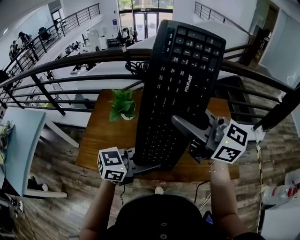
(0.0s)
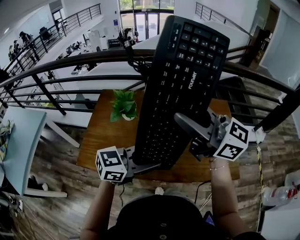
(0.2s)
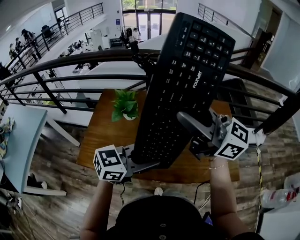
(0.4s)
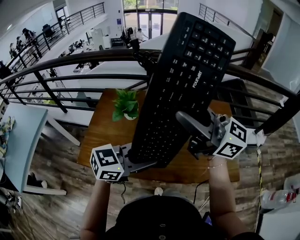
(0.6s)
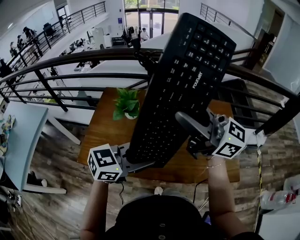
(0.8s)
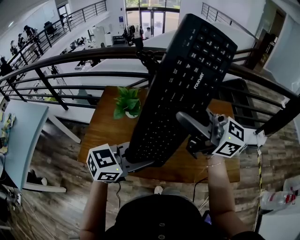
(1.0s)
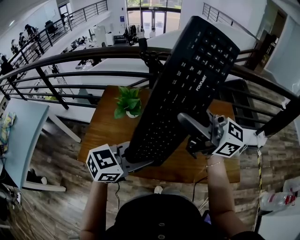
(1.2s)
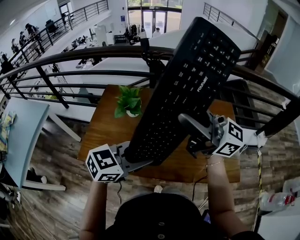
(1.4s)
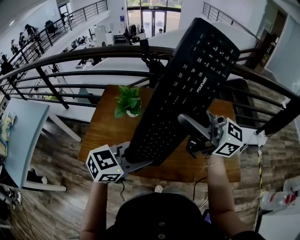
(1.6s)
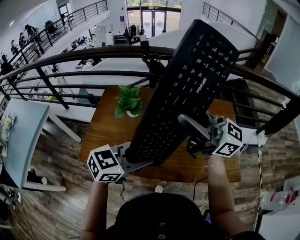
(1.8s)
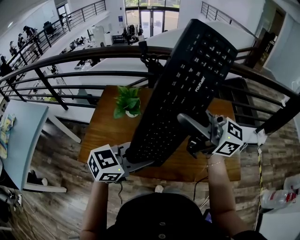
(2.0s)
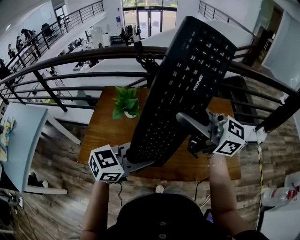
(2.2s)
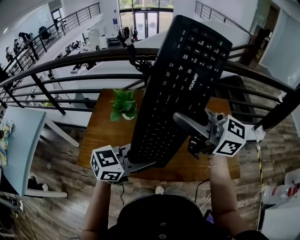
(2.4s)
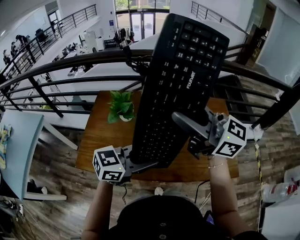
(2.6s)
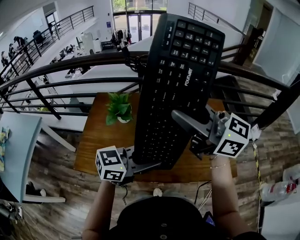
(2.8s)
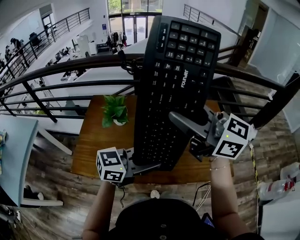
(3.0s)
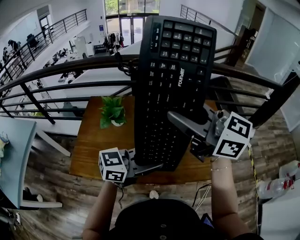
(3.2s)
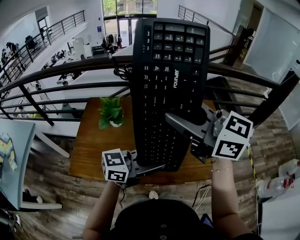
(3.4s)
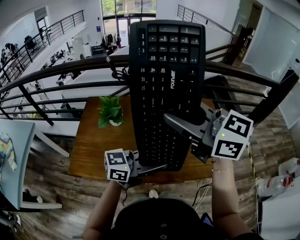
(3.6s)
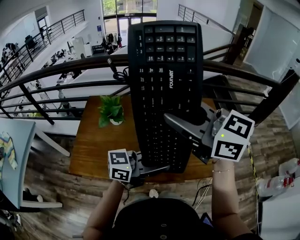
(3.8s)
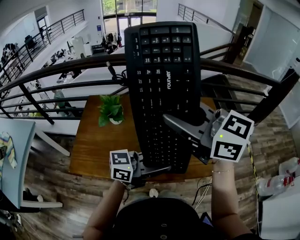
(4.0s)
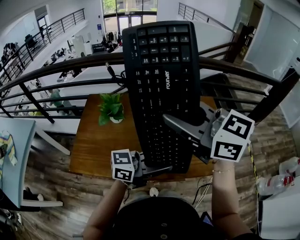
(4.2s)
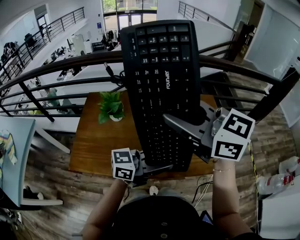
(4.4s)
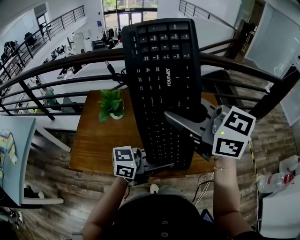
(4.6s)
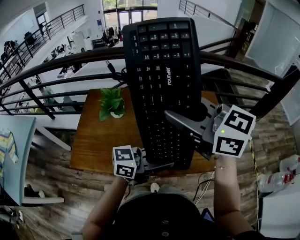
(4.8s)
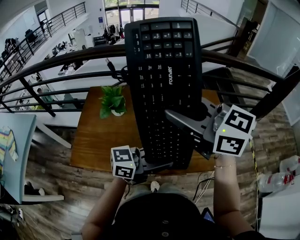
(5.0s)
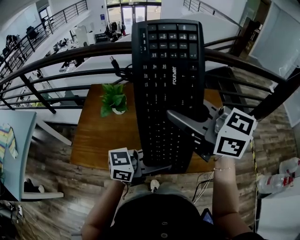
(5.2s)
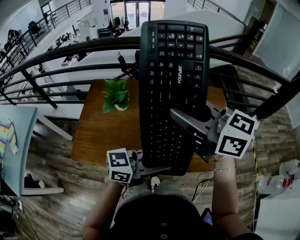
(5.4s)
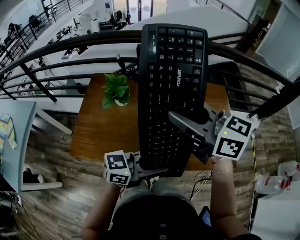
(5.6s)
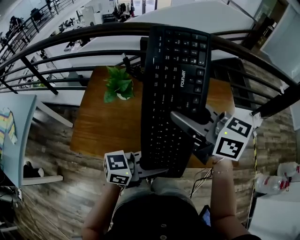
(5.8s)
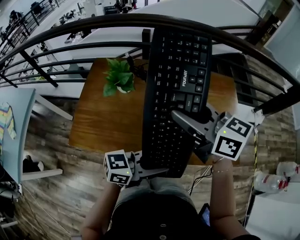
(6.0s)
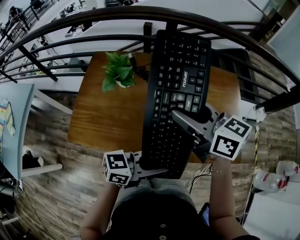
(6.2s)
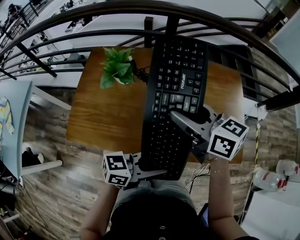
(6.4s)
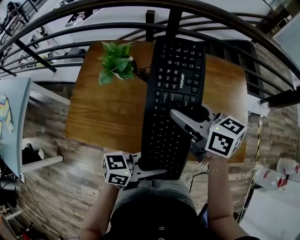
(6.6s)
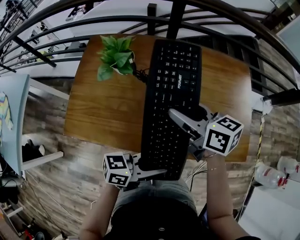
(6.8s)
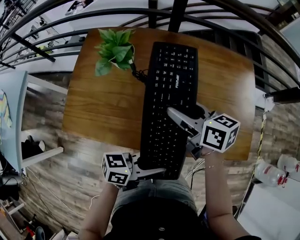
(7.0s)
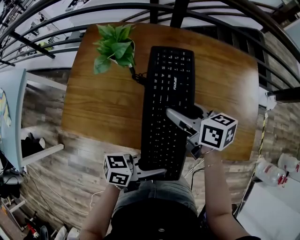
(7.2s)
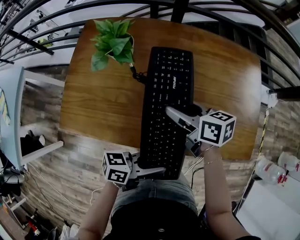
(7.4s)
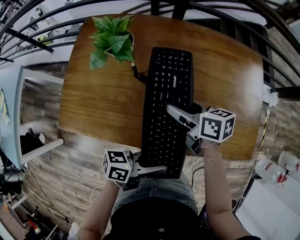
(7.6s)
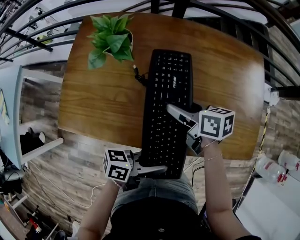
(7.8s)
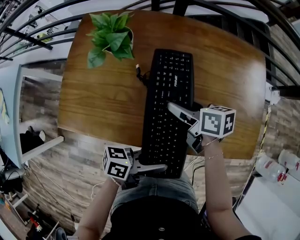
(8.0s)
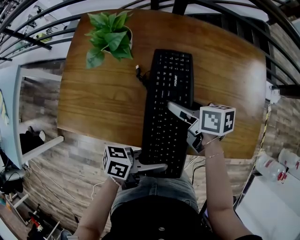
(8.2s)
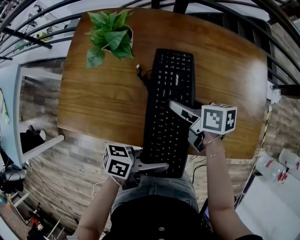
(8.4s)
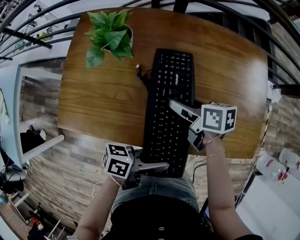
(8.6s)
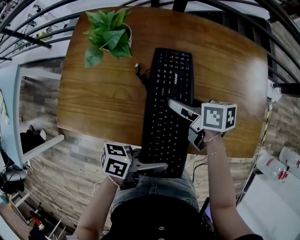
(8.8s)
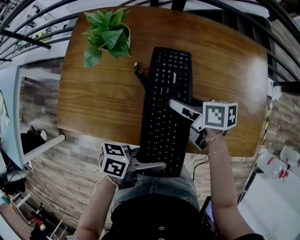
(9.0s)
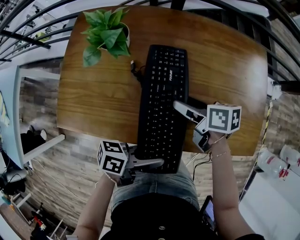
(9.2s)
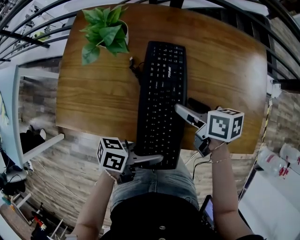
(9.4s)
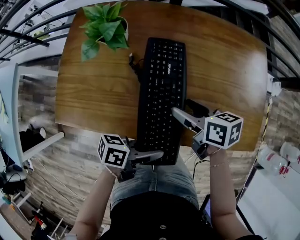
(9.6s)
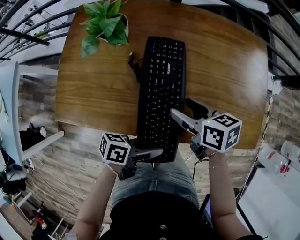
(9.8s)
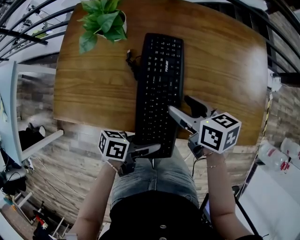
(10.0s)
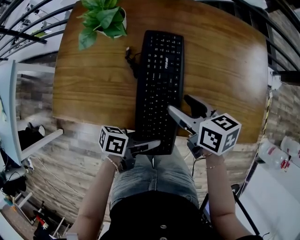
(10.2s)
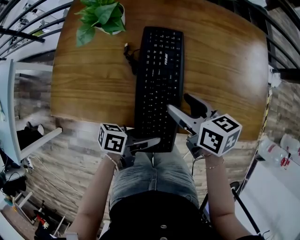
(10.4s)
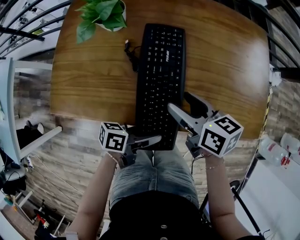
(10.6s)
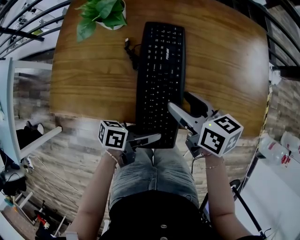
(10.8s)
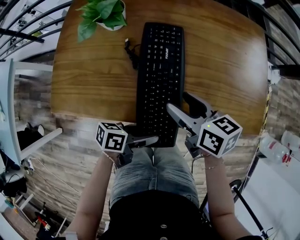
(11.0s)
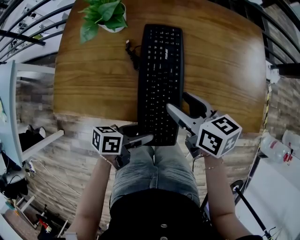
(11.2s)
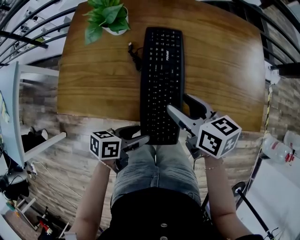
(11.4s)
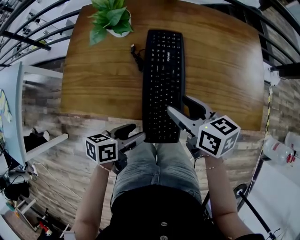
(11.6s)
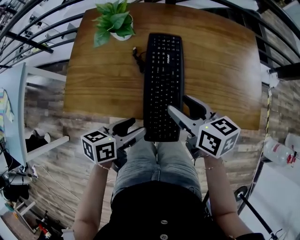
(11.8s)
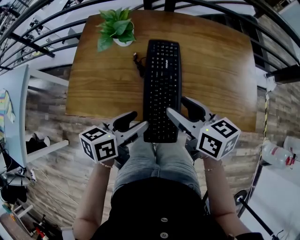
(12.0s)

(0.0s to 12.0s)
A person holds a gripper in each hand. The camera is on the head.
0.0s - 1.6s: The grippers make only small movements.
1.6s - 3.0s: The right gripper changes its angle by approximately 20 degrees. Meanwhile the left gripper changes place by about 5 cm, and changes its angle by some 20 degrees.
3.0s - 4.4s: The left gripper ends up about 5 cm from where it was.
4.4s - 6.0s: The left gripper goes about 5 cm downward, while the right gripper goes approximately 10 cm downward, and swivels roughly 20 degrees.
6.0s - 7.6s: The right gripper shifts about 25 cm downward, and turns by approximately 40 degrees. Meanwhile the left gripper goes approximately 15 cm downward, and swivels about 30 degrees.
7.6s - 9.0s: There are only small adjustments of the grippers.
9.0s - 10.4s: The left gripper is displaced downward by some 10 cm. The right gripper changes place by some 10 cm.
10.4s - 12.0s: Both grippers move upward, roughly 10 cm. The left gripper changes its angle by about 40 degrees, and opens.

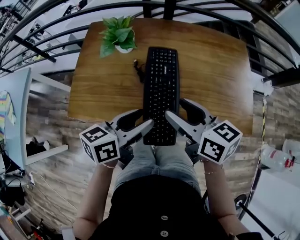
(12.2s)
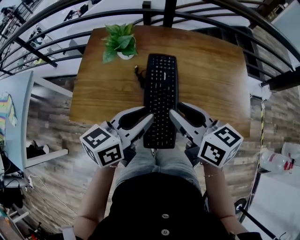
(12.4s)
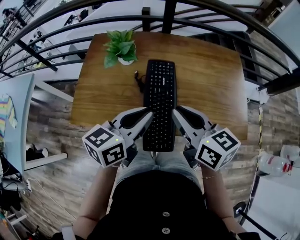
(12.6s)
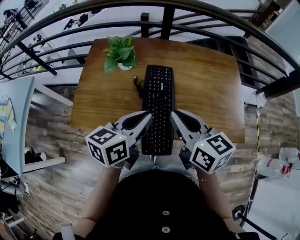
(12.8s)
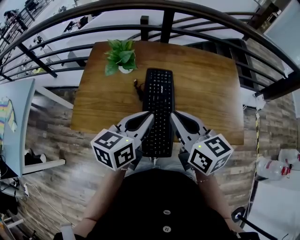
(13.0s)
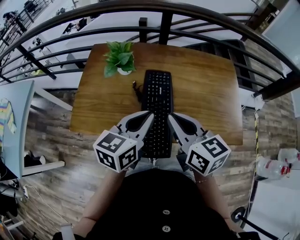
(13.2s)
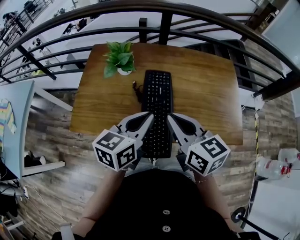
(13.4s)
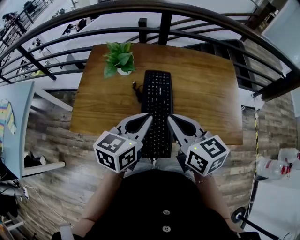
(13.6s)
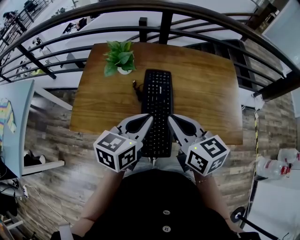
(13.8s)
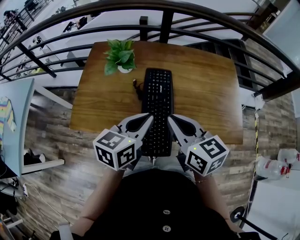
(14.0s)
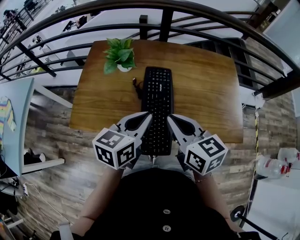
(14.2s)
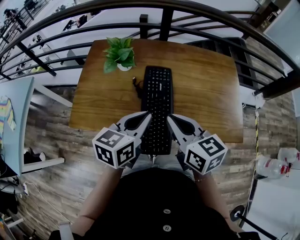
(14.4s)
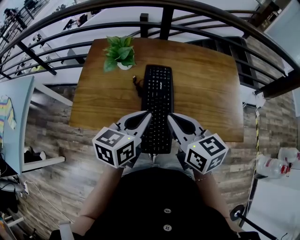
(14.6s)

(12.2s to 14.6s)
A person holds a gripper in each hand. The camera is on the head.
12.2s - 13.4s: The left gripper shifts roughly 5 cm upward, and closes; the right gripper closes up.
13.4s - 14.6s: The grippers move only a little.

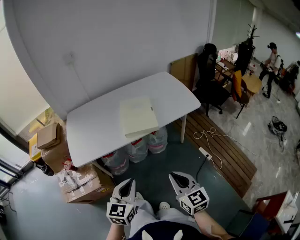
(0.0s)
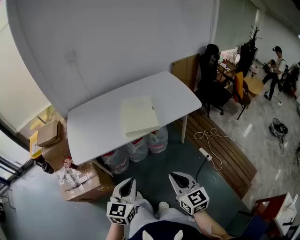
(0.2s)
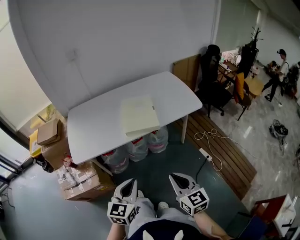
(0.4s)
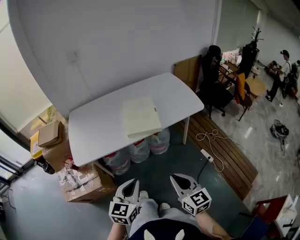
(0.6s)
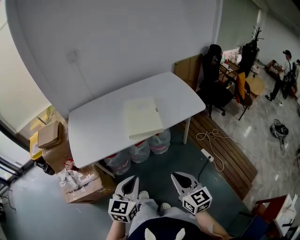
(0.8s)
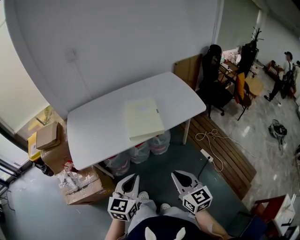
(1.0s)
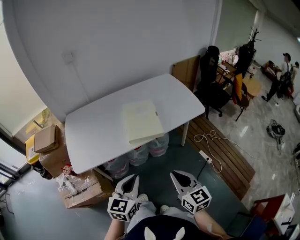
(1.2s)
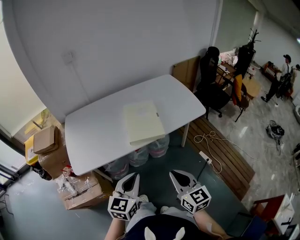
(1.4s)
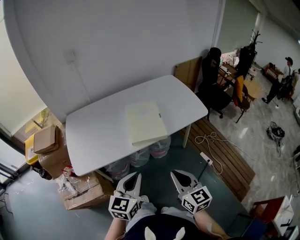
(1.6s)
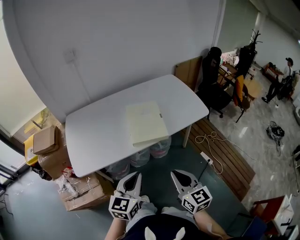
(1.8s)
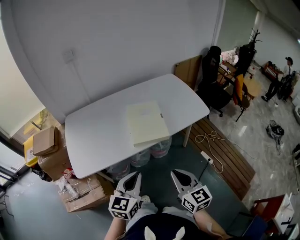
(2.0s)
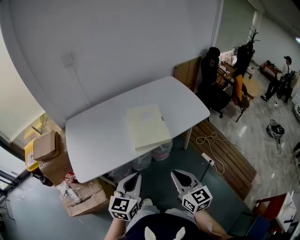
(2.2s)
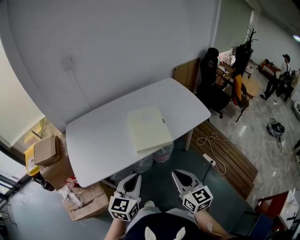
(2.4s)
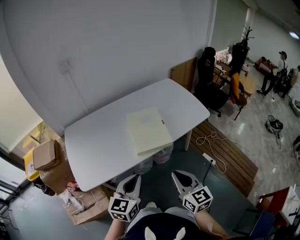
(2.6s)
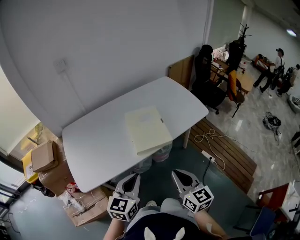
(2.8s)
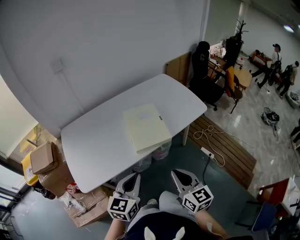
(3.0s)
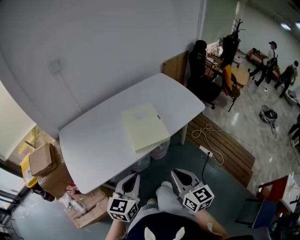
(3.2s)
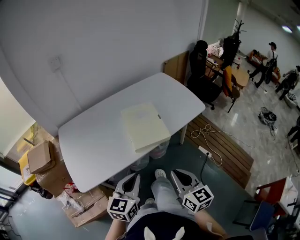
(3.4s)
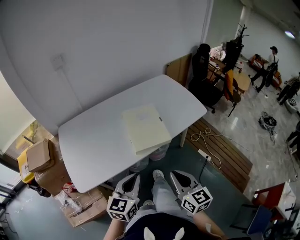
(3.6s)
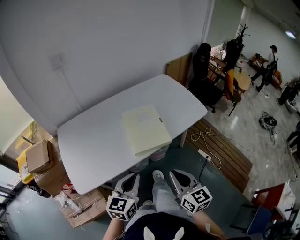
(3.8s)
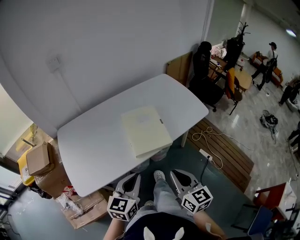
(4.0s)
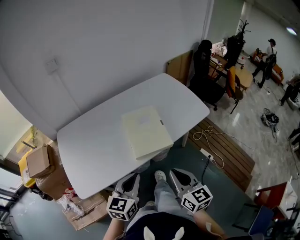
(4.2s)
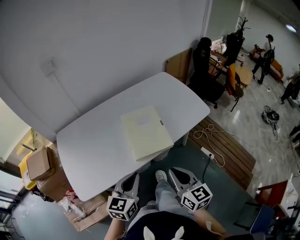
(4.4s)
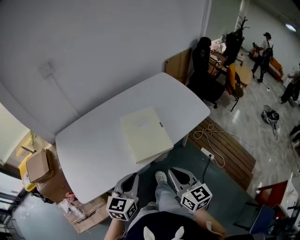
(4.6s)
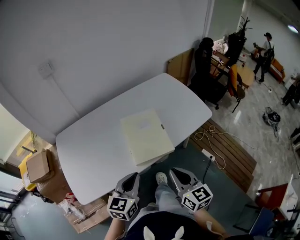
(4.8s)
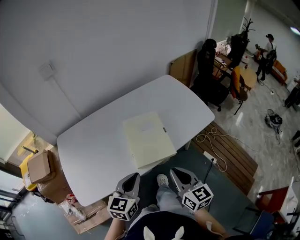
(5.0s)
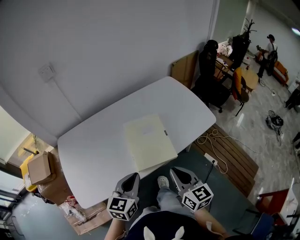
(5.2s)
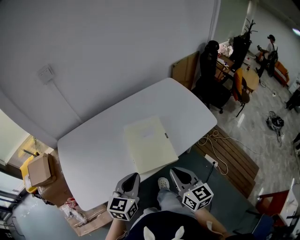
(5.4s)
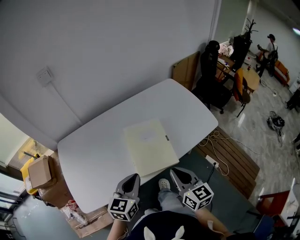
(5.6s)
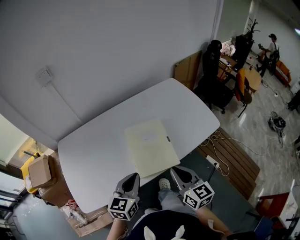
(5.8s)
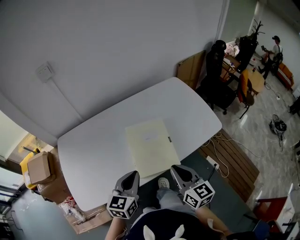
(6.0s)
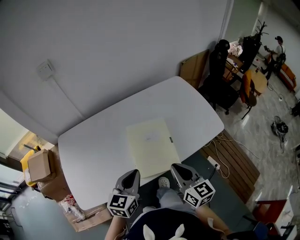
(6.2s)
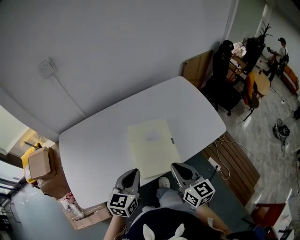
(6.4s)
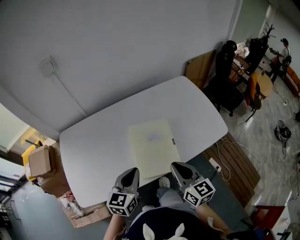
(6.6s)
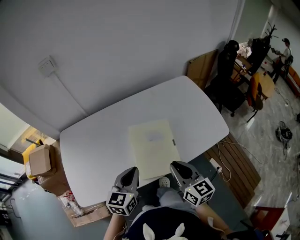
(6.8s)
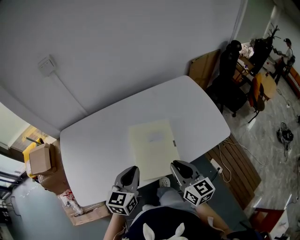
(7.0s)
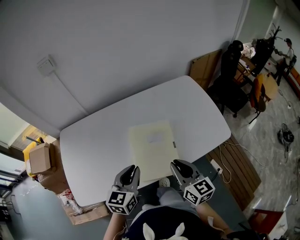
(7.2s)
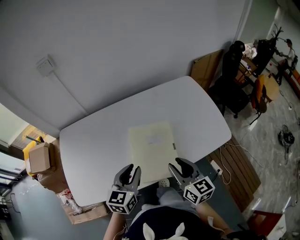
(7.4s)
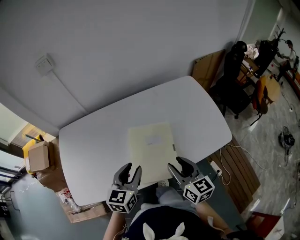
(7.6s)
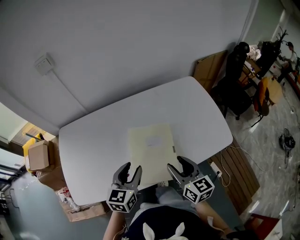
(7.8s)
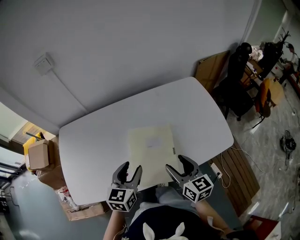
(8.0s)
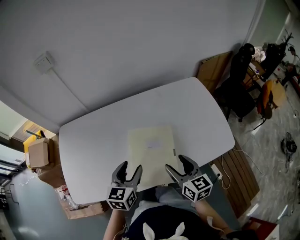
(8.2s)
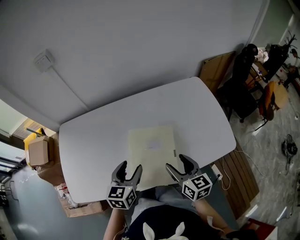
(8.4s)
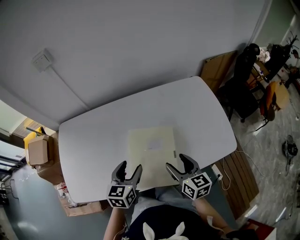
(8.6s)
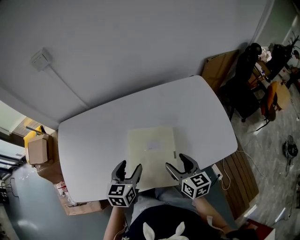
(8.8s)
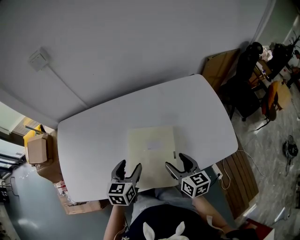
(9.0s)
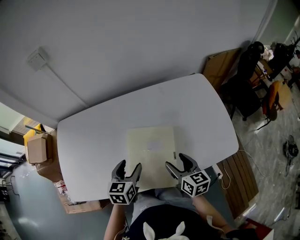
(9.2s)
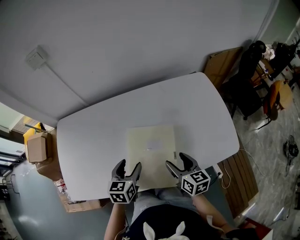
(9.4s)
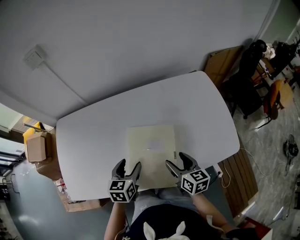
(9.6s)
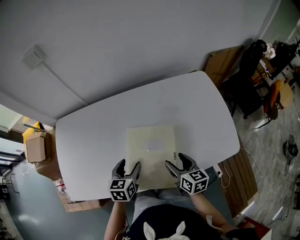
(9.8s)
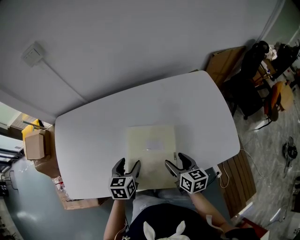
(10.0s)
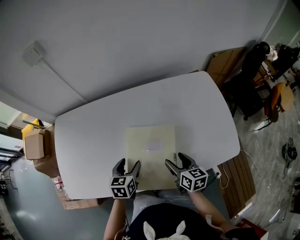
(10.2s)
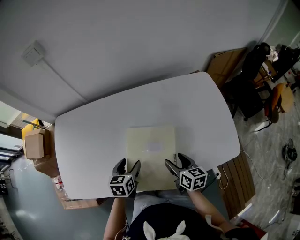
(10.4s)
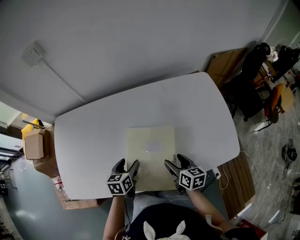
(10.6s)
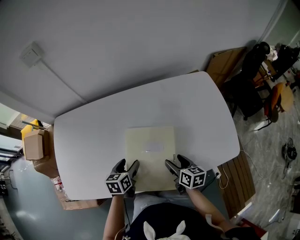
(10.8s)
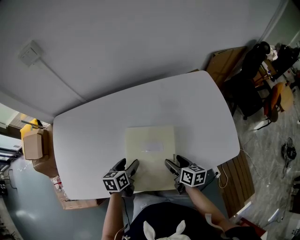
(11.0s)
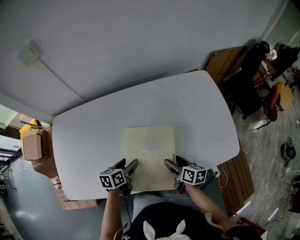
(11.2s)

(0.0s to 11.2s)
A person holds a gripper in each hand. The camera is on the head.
0.0s - 1.6s: The two grippers go some 10 cm forward.
1.6s - 3.2s: The left gripper goes some 10 cm to the left and forward; the right gripper ends up approximately 5 cm from where it was.
3.2s - 4.8s: The two grippers go about 10 cm forward.
4.8s - 6.4s: Both grippers travel together forward, roughly 10 cm.
6.4s - 8.0s: Both grippers move forward, roughly 10 cm. The right gripper opens its fingers; the left gripper opens its fingers.
8.0s - 9.6s: Both grippers travel together downward, approximately 10 cm.
9.6s - 11.2s: Both grippers travel together downward, approximately 10 cm. The left gripper rotates about 30 degrees. Meanwhile the right gripper turns by about 20 degrees.
